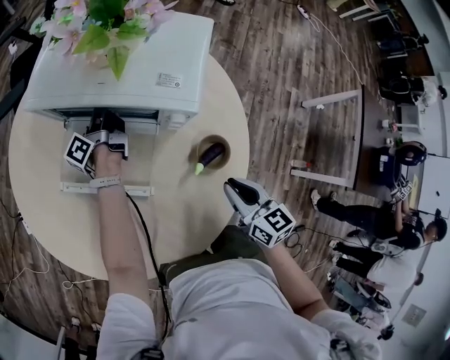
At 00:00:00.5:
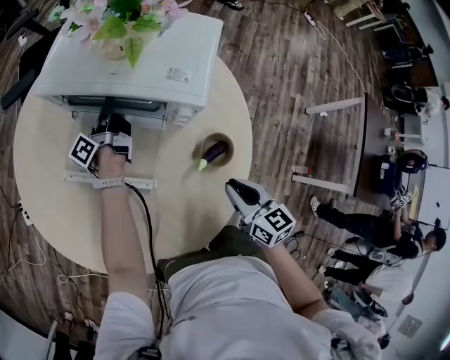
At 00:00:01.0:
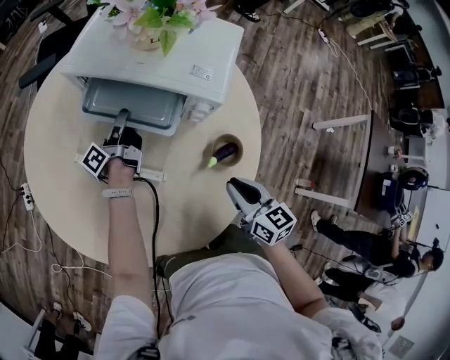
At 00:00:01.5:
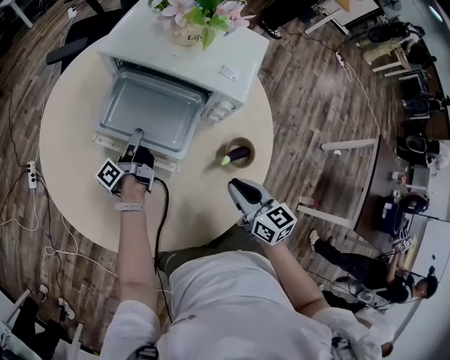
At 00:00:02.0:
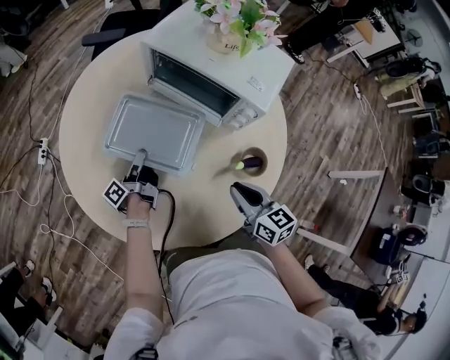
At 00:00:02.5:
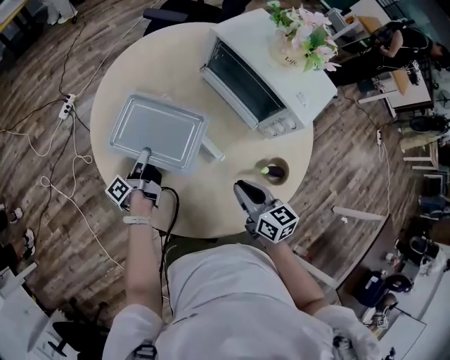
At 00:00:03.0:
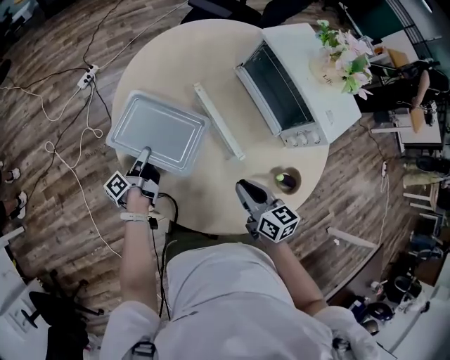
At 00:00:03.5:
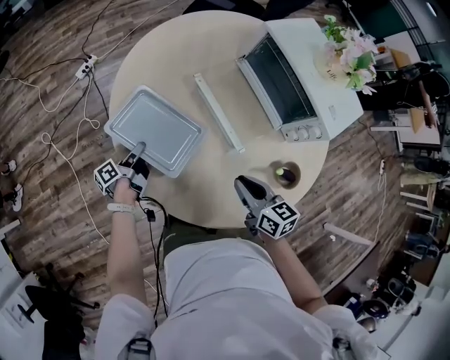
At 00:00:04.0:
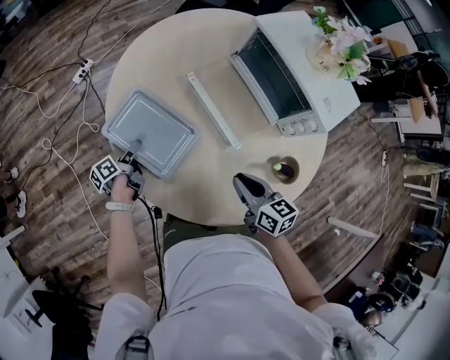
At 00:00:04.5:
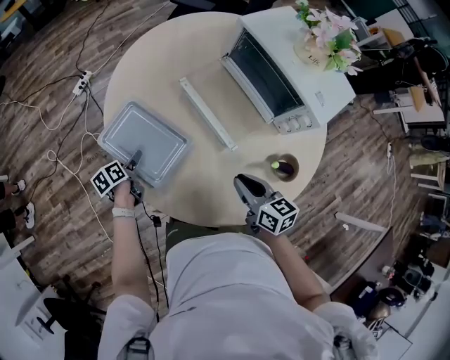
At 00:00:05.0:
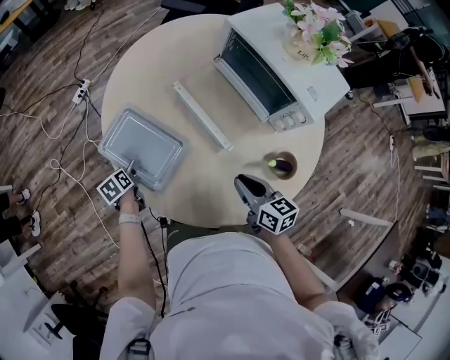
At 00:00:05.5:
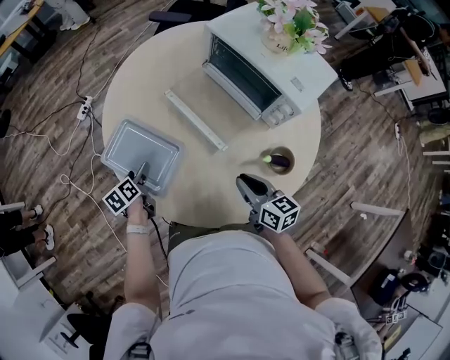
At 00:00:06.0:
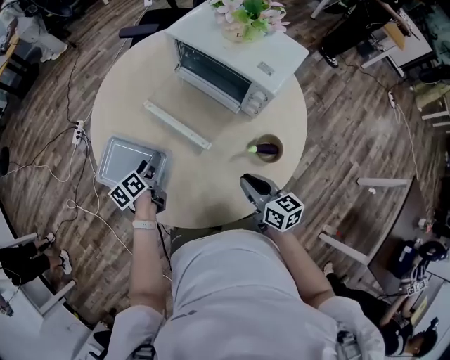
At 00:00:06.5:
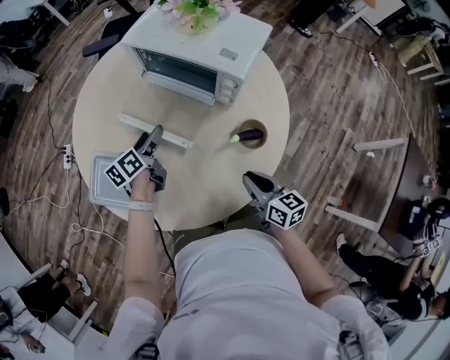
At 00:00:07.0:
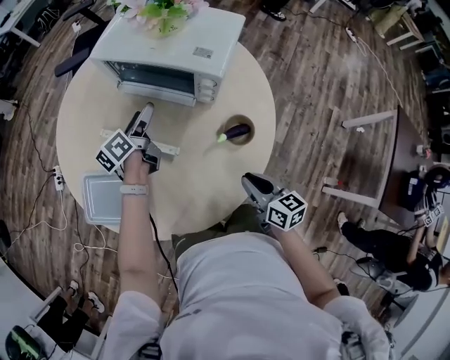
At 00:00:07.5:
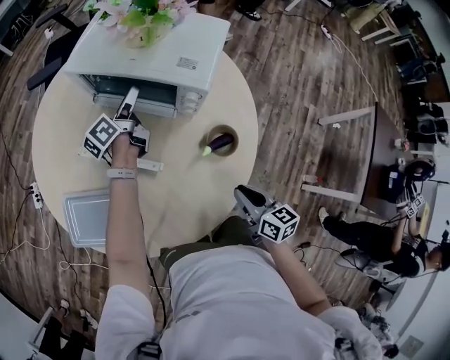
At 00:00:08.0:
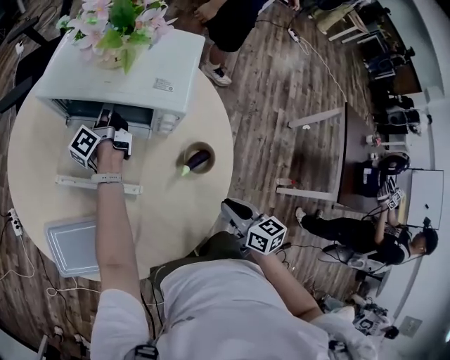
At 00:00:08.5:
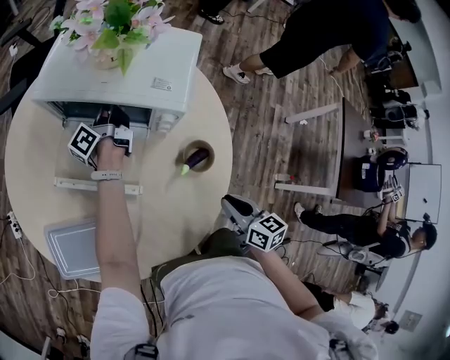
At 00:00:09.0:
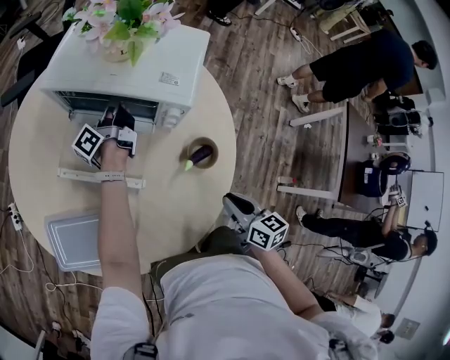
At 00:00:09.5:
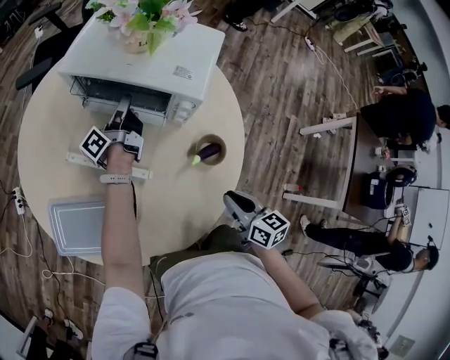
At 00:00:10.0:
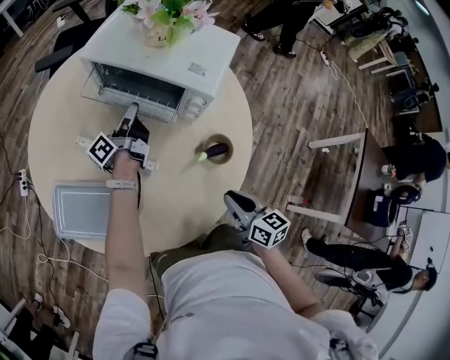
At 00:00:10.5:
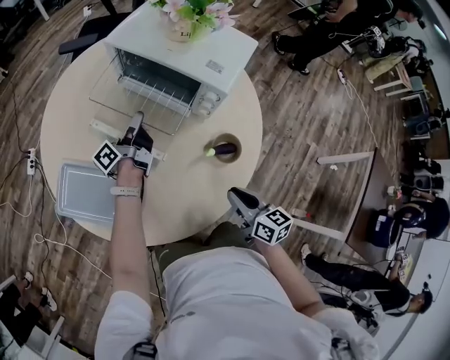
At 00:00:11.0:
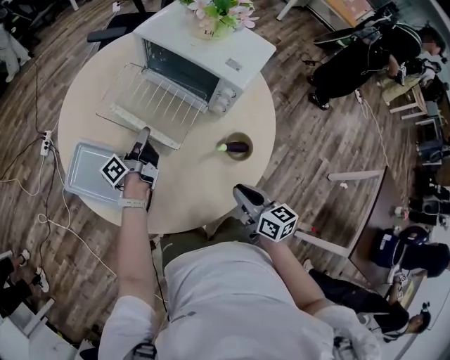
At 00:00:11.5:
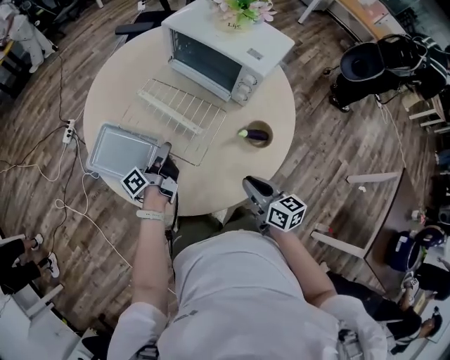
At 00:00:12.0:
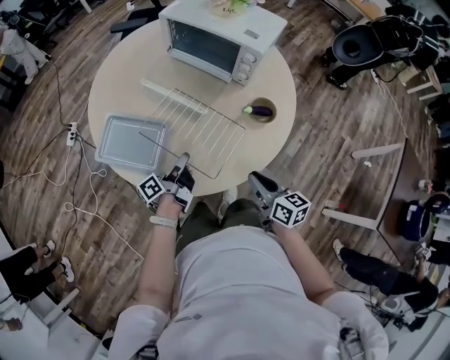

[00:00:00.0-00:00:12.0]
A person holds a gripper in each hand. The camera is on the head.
00:00:00.0 to 00:00:02.0: The left gripper moves backward and to the left, about 30 cm; the right gripper travels to the left by about 10 cm, and swivels some 20 degrees.
00:00:02.0 to 00:00:04.0: The right gripper travels to the left by about 10 cm, and turns by approximately 20 degrees. Meanwhile the left gripper travels to the left by approximately 25 cm, changes its angle by some 30 degrees, and opens its fingers.
00:00:04.0 to 00:00:06.0: The right gripper heads to the right and backward, covering some 10 cm. The left gripper moves to the right and upward, approximately 20 cm, and swivels roughly 30 degrees.
00:00:06.0 to 00:00:08.0: The left gripper moves approximately 40 cm, and angles its fingers upward, by about 40 degrees. Meanwhile the right gripper moves about 10 cm, and changes its angle by some 30 degrees.
00:00:08.0 to 00:00:10.0: The left gripper travels backward by some 10 cm, and closes.
00:00:10.0 to 00:00:12.0: The left gripper is displaced backward by roughly 35 cm, while the right gripper is displaced backward and to the left by roughly 15 cm.

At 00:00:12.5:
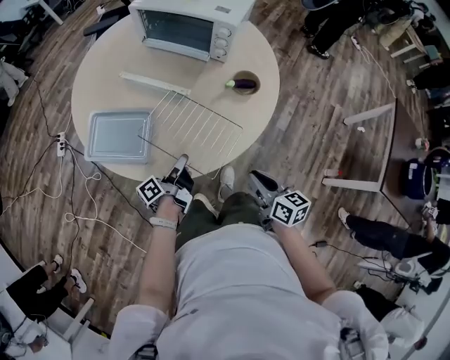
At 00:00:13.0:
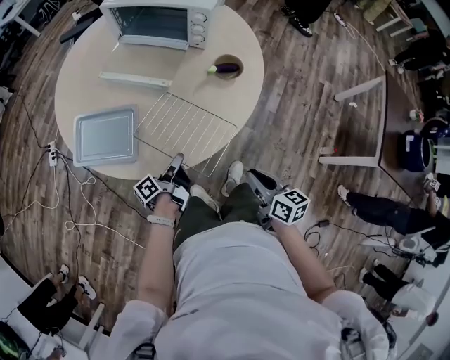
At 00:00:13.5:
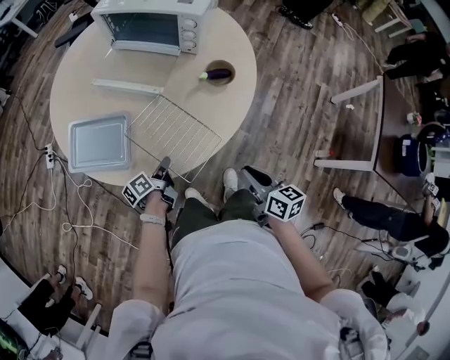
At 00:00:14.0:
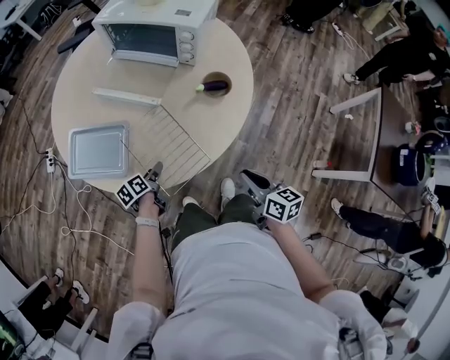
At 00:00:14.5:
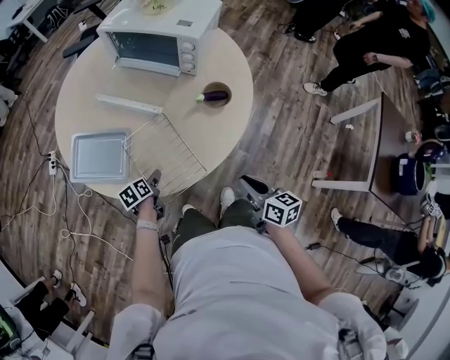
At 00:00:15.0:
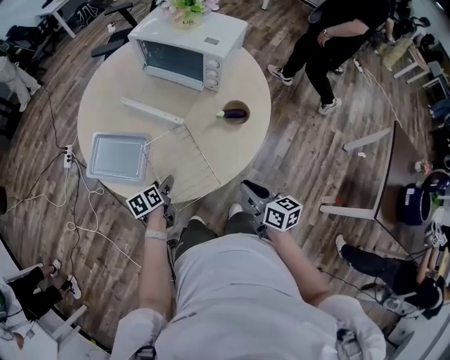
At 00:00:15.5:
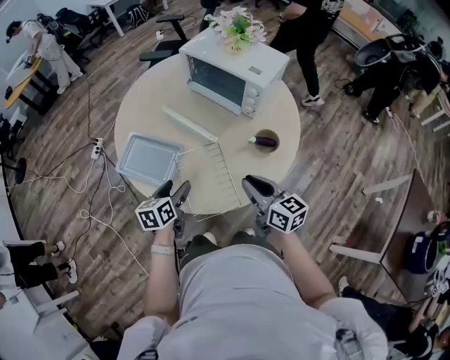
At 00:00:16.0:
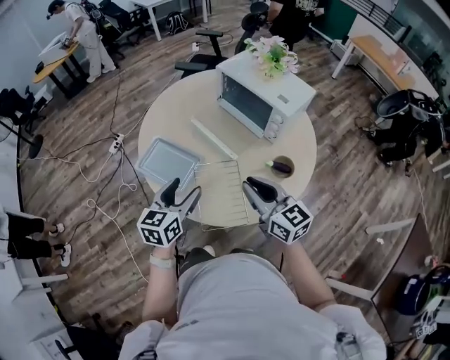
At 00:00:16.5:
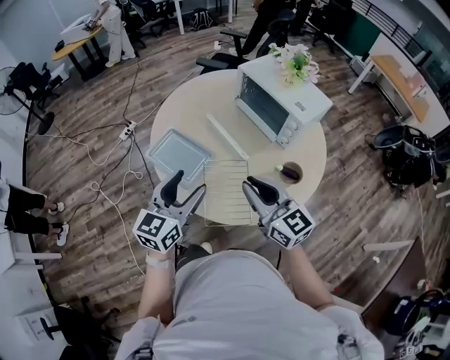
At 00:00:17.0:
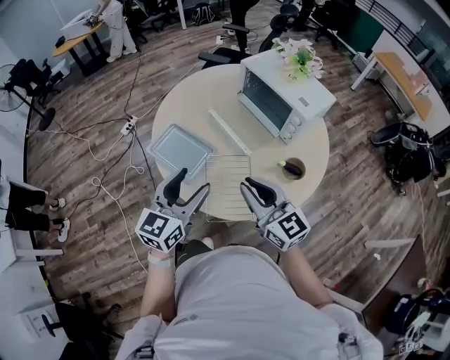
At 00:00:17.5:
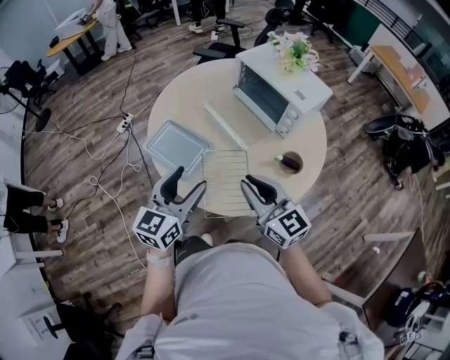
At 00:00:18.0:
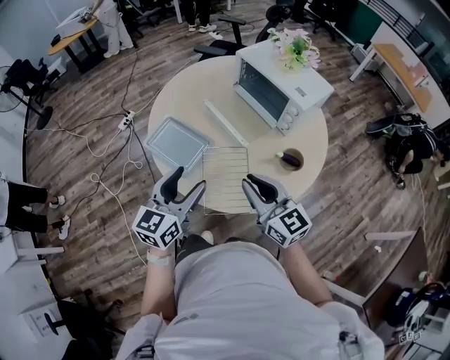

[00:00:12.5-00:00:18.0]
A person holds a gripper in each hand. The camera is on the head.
00:00:12.5 to 00:00:14.5: The right gripper heads to the right, covering approximately 5 cm. The left gripper is displaced downward and to the left by some 15 cm, points its fingers roughly 50 degrees further downward, and opens its fingers.
00:00:14.5 to 00:00:16.0: The left gripper travels upward by roughly 35 cm, and points its fingers about 30 degrees further upward, while the right gripper shifts about 30 cm upward, forward and to the left, and rotates roughly 50 degrees.
00:00:16.0 to 00:00:18.0: The left gripper shifts by roughly 5 cm.

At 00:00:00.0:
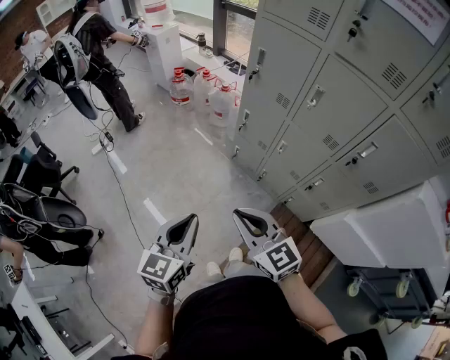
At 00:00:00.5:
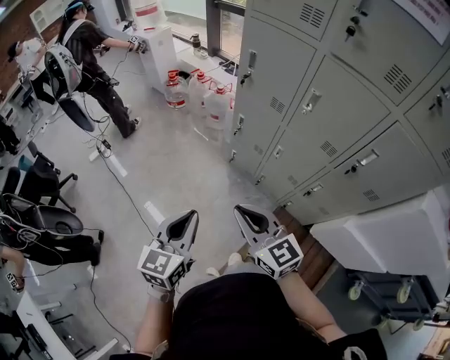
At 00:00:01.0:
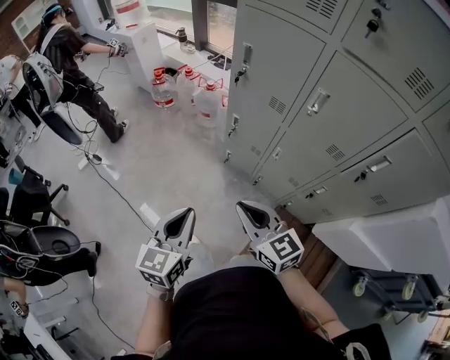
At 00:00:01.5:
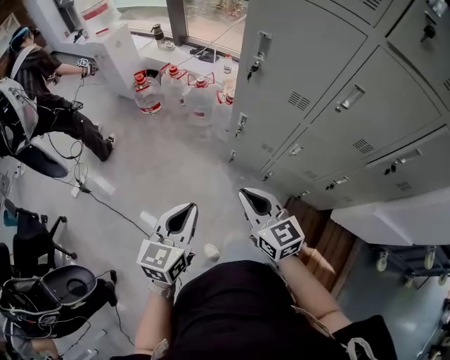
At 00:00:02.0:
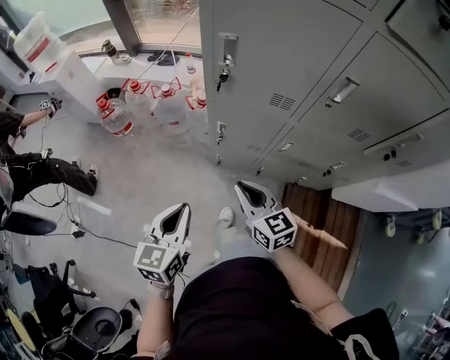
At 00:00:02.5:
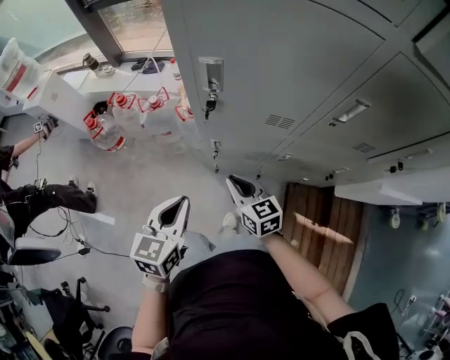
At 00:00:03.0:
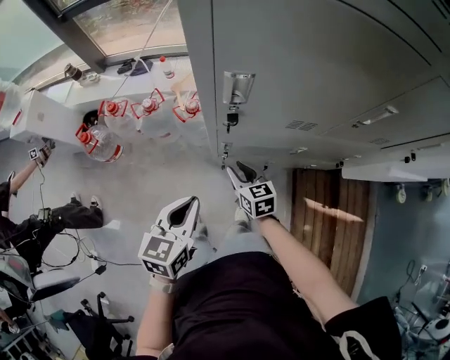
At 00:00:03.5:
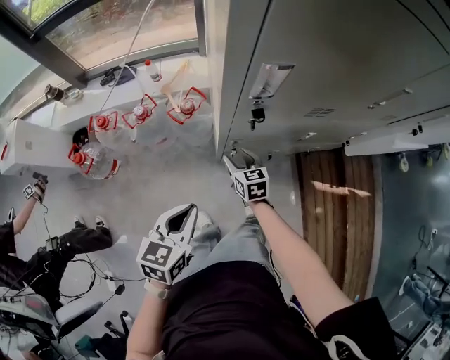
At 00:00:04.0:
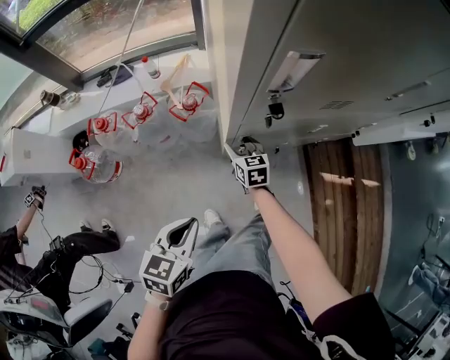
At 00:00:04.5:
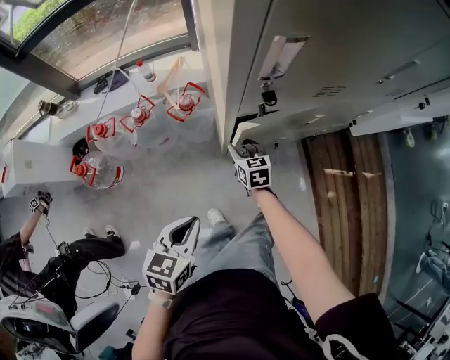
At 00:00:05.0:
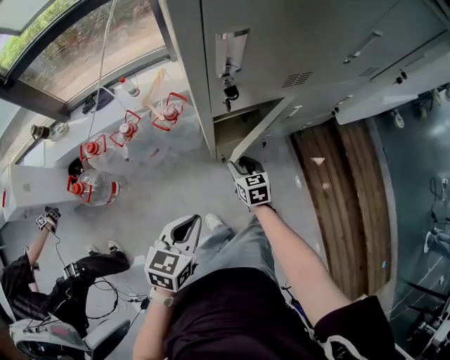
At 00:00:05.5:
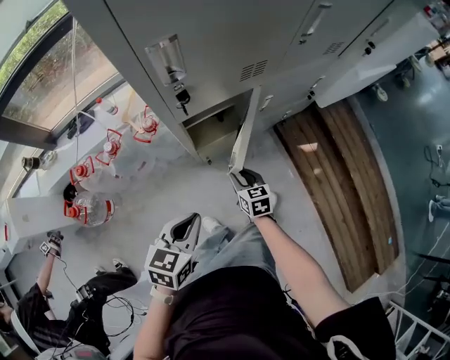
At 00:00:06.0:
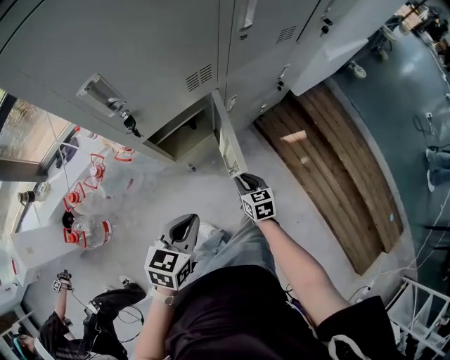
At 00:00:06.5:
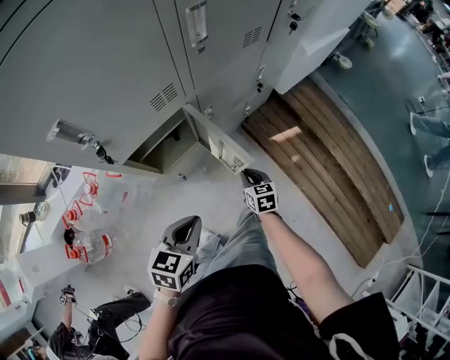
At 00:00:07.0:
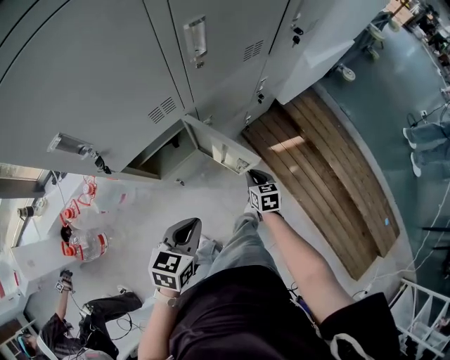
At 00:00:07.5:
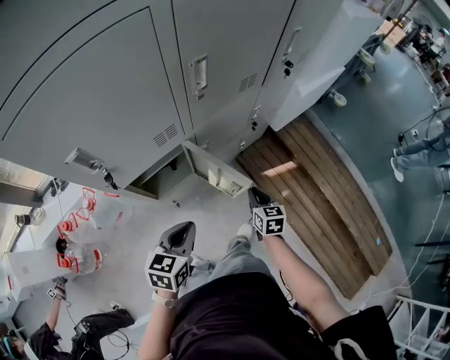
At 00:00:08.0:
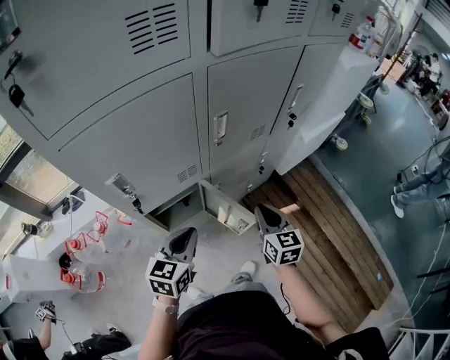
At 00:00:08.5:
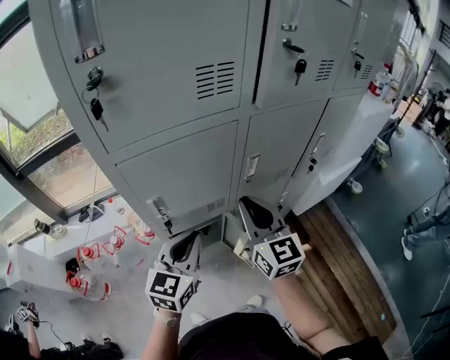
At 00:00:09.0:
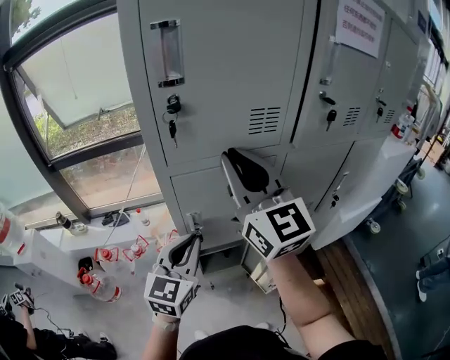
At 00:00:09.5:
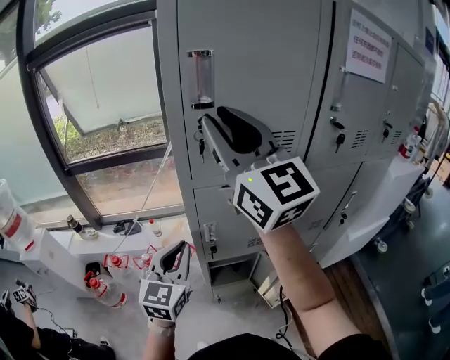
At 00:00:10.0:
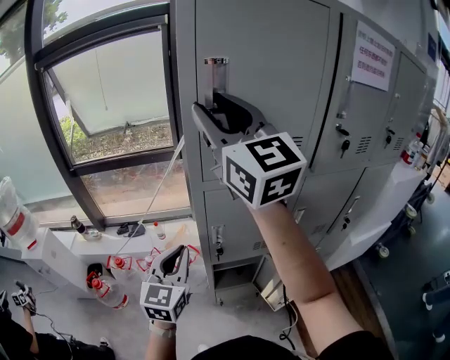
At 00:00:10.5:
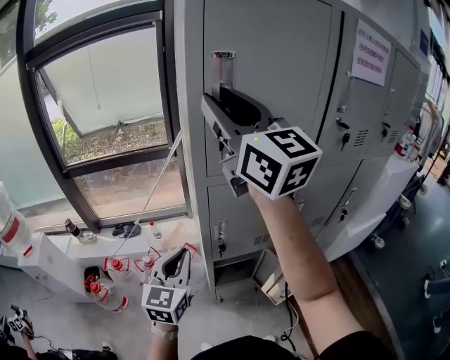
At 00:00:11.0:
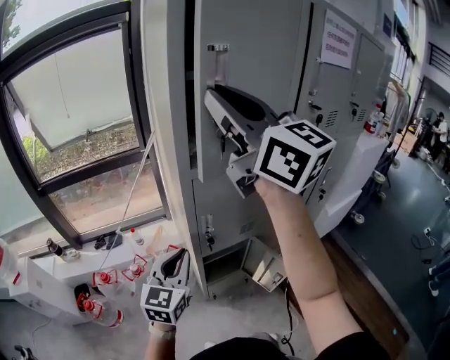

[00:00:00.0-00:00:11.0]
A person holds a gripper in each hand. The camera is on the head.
00:00:00.0 to 00:00:02.0: The left gripper shifts by roughly 50 cm, and changes its angle by about 30 degrees. The right gripper moves approximately 40 cm, and changes its angle by about 40 degrees.
00:00:02.0 to 00:00:03.5: The left gripper shifts by roughly 25 cm, and rotates roughly 30 degrees. Meanwhile the right gripper moves about 35 cm, swivels some 30 degrees, and opens its fingers.
00:00:03.5 to 00:00:05.5: The left gripper is displaced to the right by about 5 cm, and swivels some 20 degrees; the right gripper moves to the right and backward, about 15 cm.
00:00:05.5 to 00:00:07.5: The two grippers go approximately 25 cm to the right and forward. The right gripper rotates roughly 20 degrees.
00:00:07.5 to 00:00:09.0: The right gripper shifts about 60 cm upward, and tips its fingers upward by about 60 degrees, while the left gripper is displaced upward by approximately 30 cm, and turns by approximately 40 degrees.
00:00:09.0 to 00:00:11.0: The right gripper travels upward and to the left by about 20 cm. The left gripper shifts roughly 10 cm to the left.
